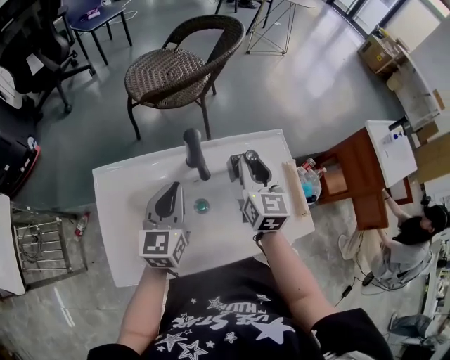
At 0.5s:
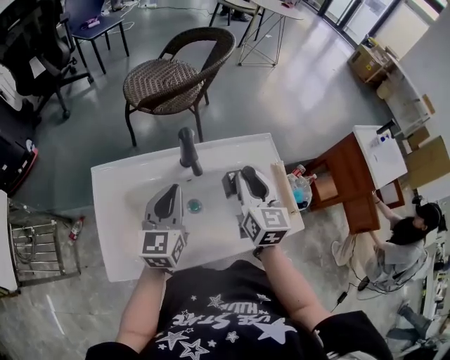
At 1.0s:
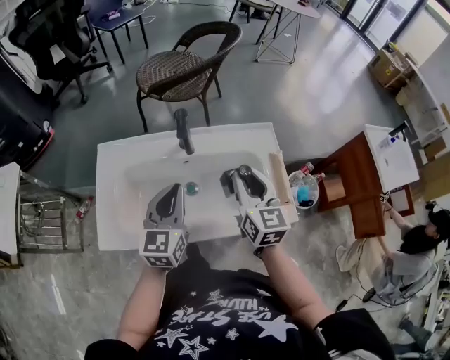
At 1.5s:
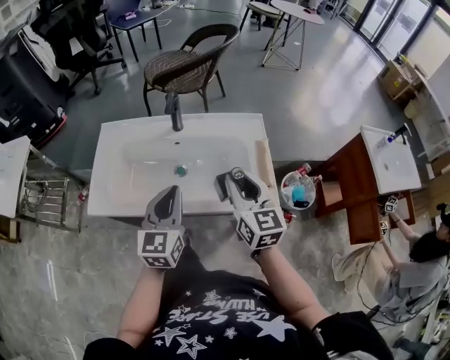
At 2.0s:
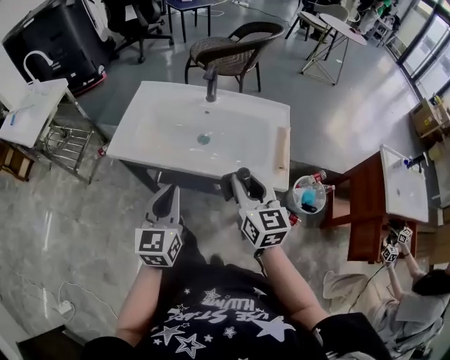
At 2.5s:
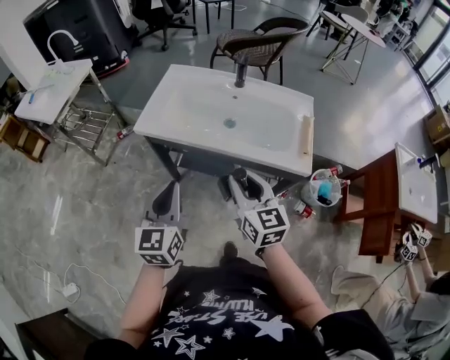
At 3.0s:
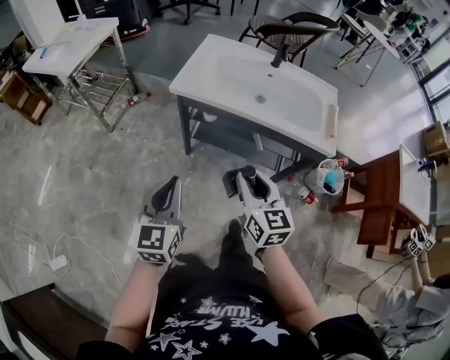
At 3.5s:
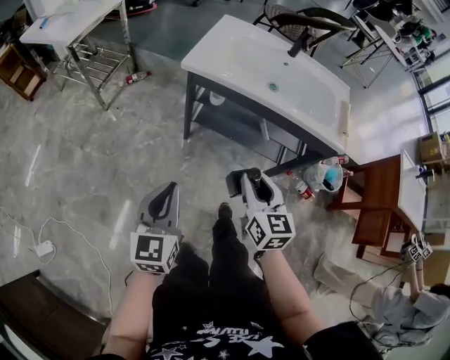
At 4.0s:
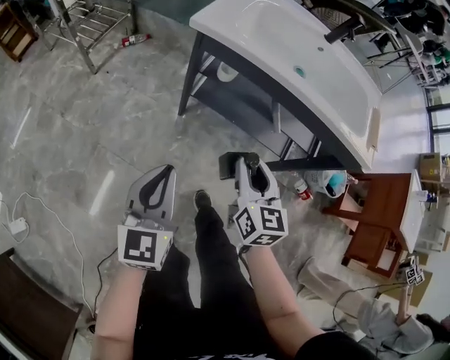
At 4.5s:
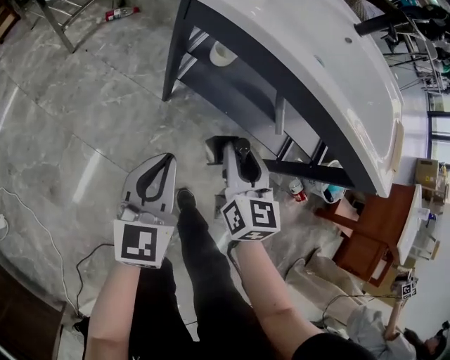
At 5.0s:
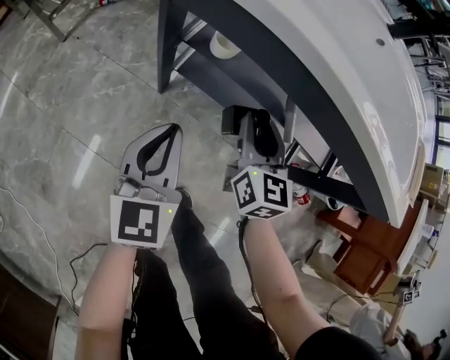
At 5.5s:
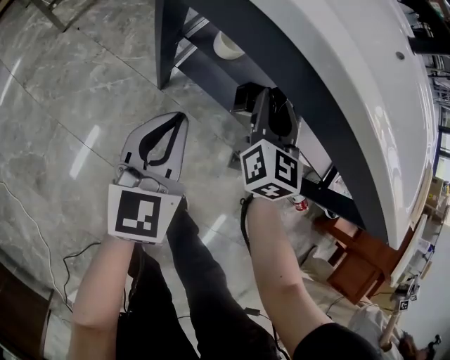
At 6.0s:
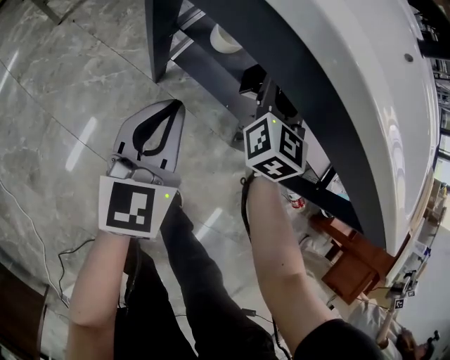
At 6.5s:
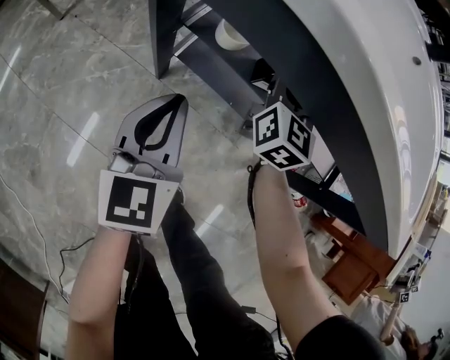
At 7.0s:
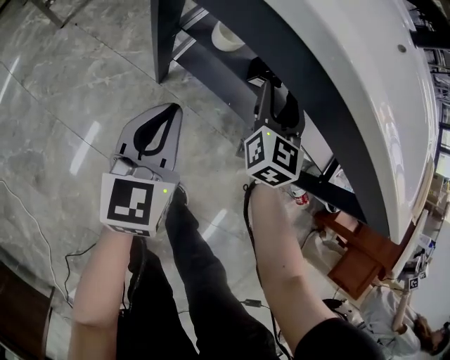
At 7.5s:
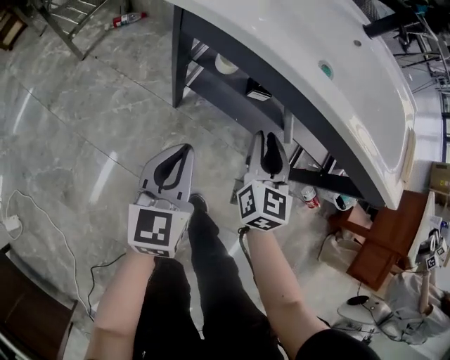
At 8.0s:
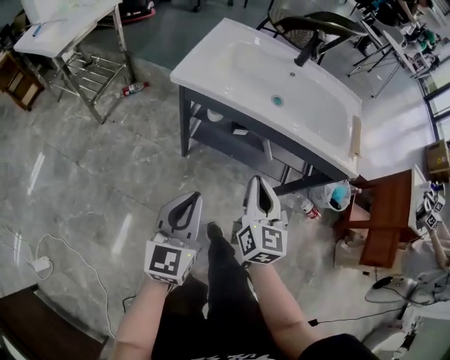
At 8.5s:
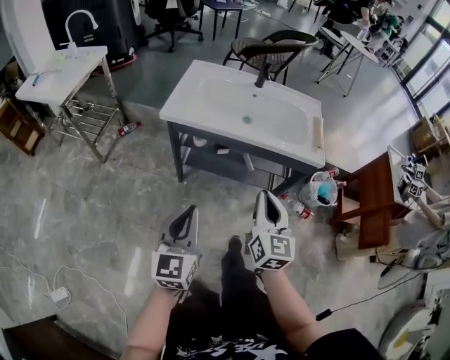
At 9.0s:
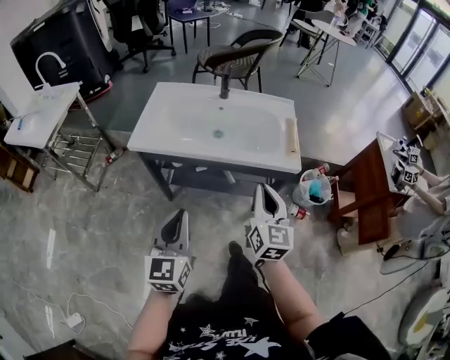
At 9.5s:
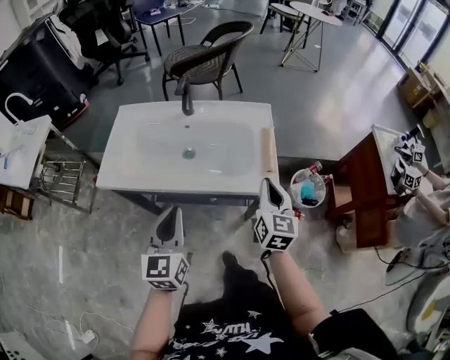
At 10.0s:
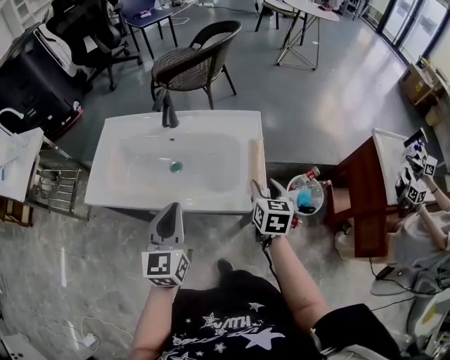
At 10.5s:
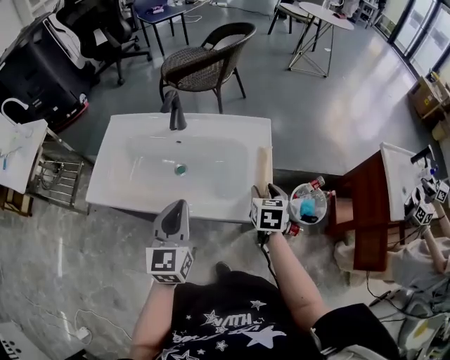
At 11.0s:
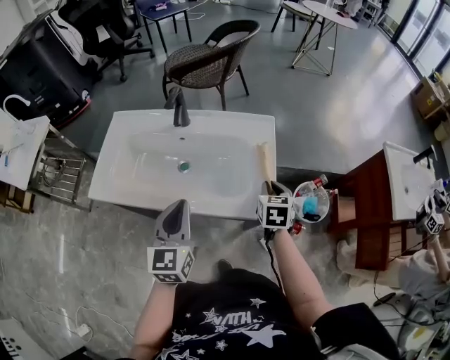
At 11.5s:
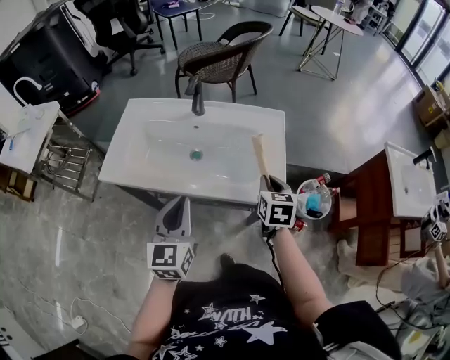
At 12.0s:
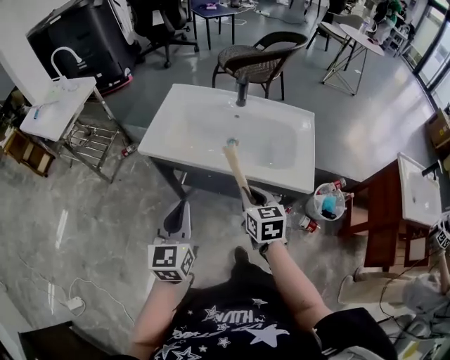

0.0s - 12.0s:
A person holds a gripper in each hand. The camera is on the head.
0.0s - 2.0s: The left gripper changes place by about 35 cm, and rotates roughly 30 degrees; the right gripper ends up roughly 30 cm from where it was, and changes its angle by roughly 30 degrees.
2.0s - 4.0s: The right gripper moves to the left and downward, approximately 30 cm; the left gripper is displaced to the left, downward and backward by approximately 35 cm.
4.0s - 6.0s: Both grippers travel together forward and downward, about 35 cm.
6.0s - 8.0s: The right gripper goes some 40 cm backward and upward. Meanwhile the left gripper shifts approximately 35 cm upward and backward.
8.0s - 10.0s: The right gripper travels to the right and forward by about 40 cm, rotates roughly 20 degrees, and opens its fingers. The left gripper travels forward, to the right and upward by about 35 cm.
10.0s - 12.0s: The grippers both shift to the left and backward by roughly 25 cm. The right gripper rotates about 30 degrees.

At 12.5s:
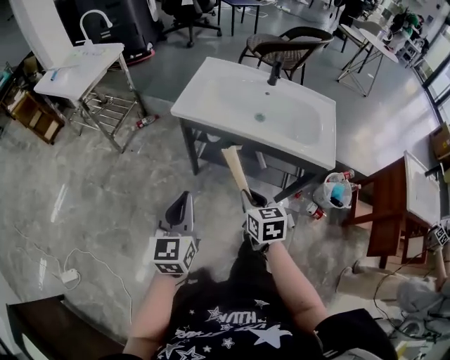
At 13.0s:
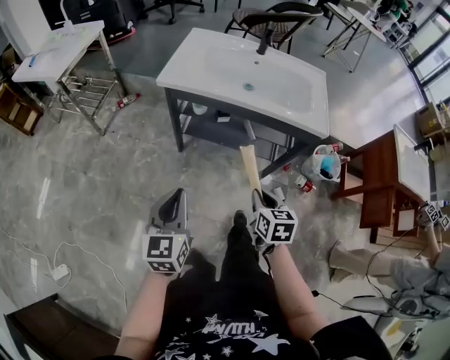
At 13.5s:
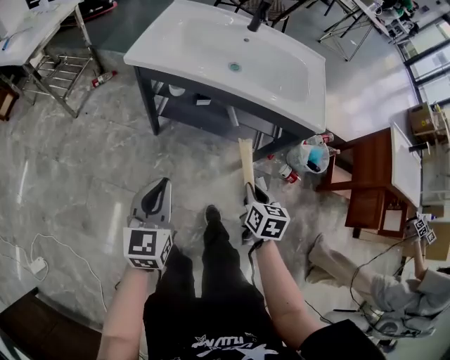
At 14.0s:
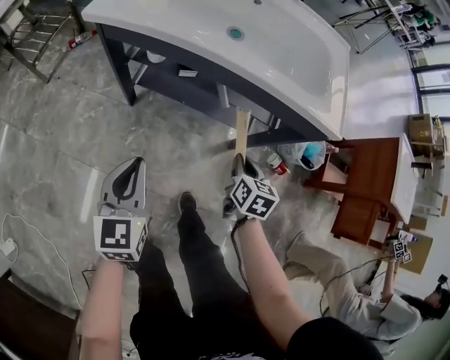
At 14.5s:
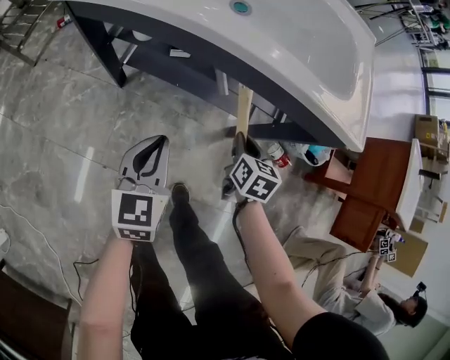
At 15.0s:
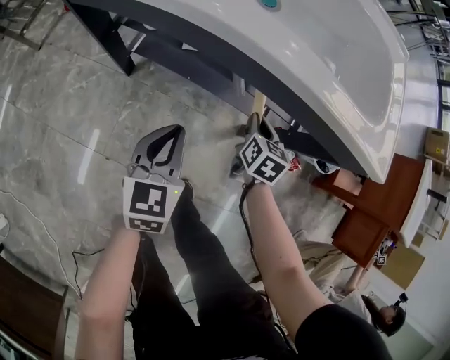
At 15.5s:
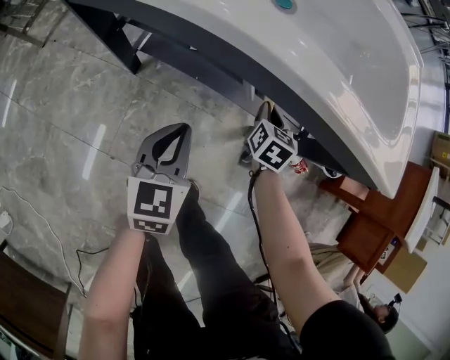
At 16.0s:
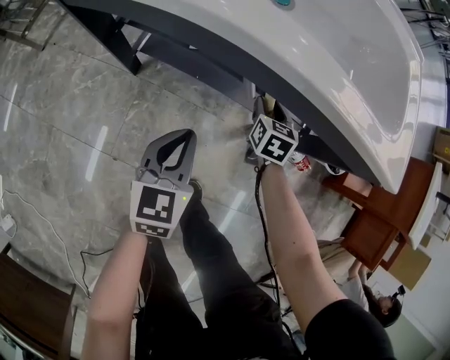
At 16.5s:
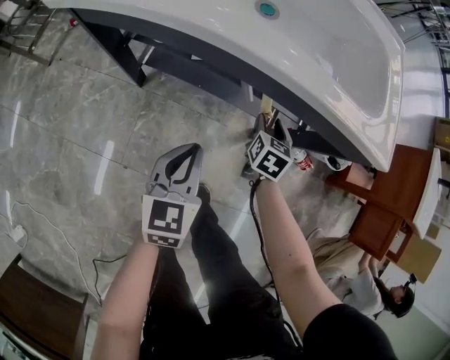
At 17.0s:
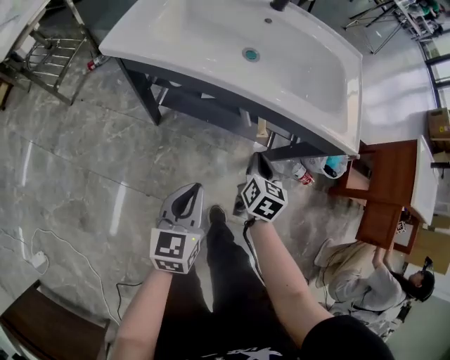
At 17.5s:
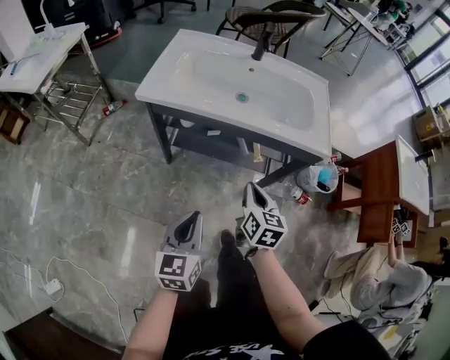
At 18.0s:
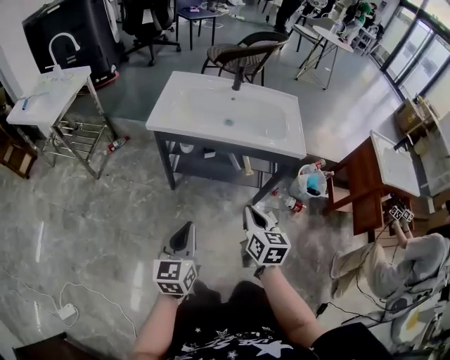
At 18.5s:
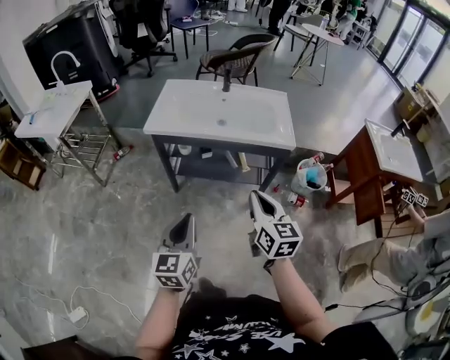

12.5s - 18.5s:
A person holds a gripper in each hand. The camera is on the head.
12.5s - 14.5s: Both grippers move downward, to the right and forward, approximately 35 cm. The right gripper turns by about 30 degrees.
14.5s - 16.5s: The right gripper goes approximately 10 cm forward.
16.5s - 18.5s: Both grippers travel together upward and backward, approximately 50 cm. The right gripper angles its fingers upward, by roughly 30 degrees, and closes.

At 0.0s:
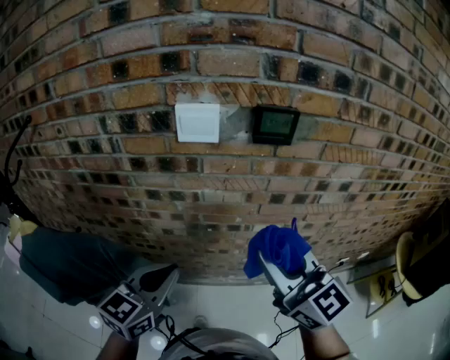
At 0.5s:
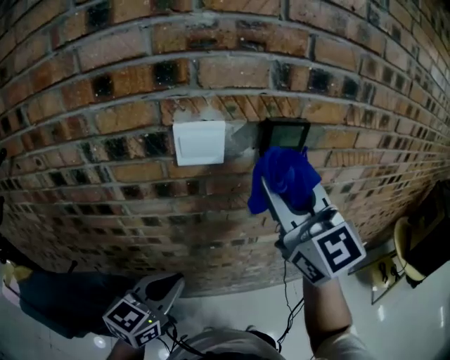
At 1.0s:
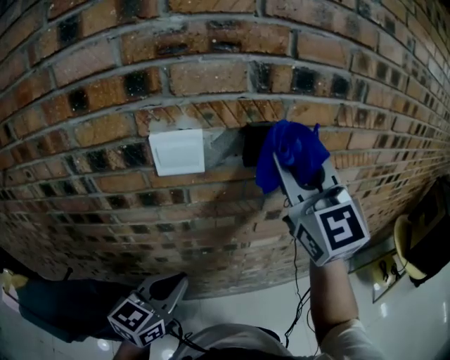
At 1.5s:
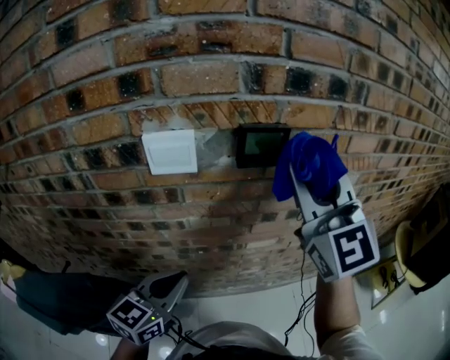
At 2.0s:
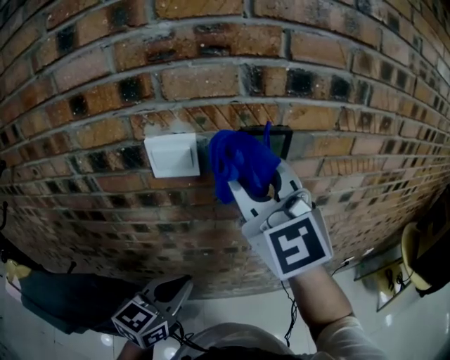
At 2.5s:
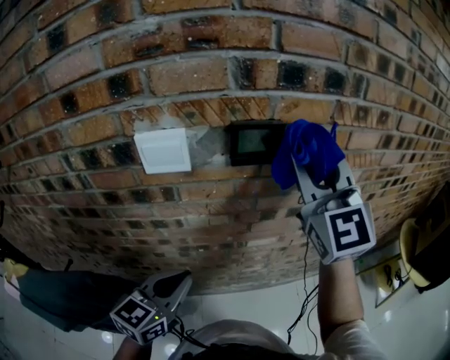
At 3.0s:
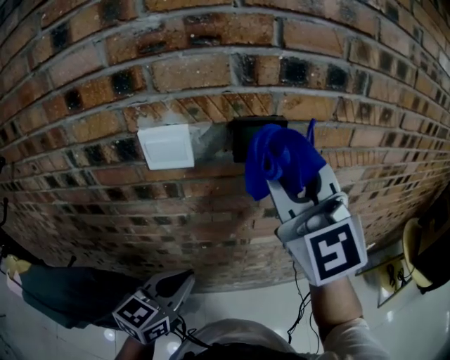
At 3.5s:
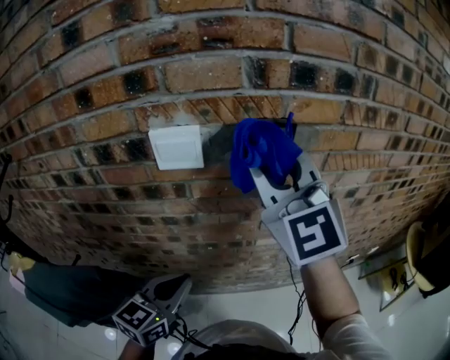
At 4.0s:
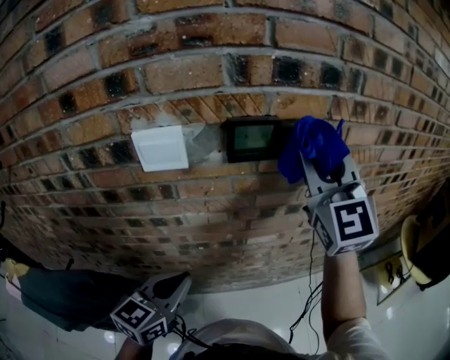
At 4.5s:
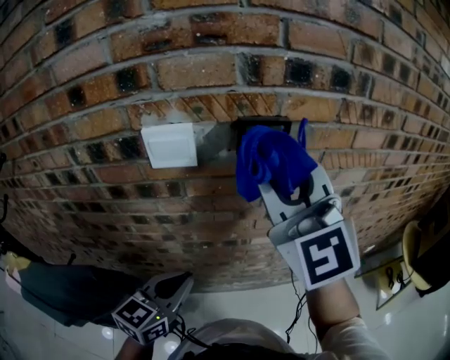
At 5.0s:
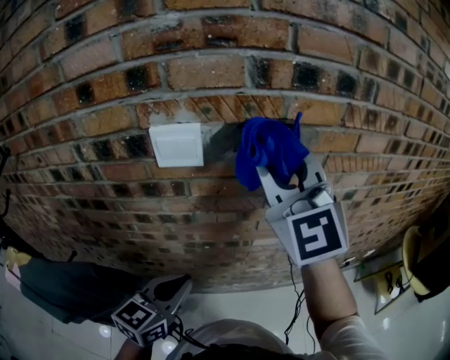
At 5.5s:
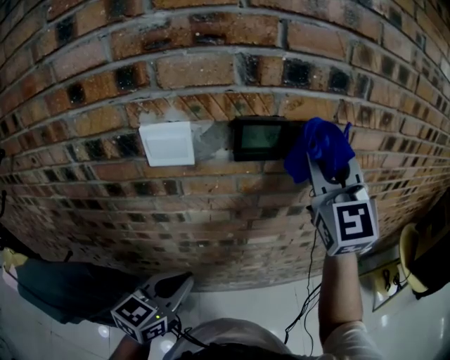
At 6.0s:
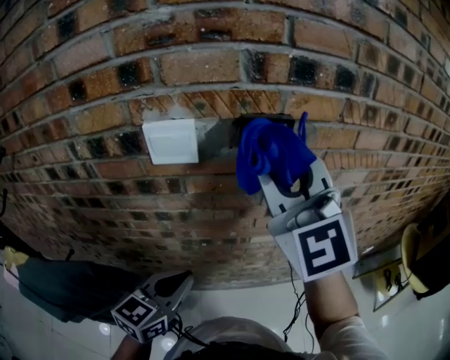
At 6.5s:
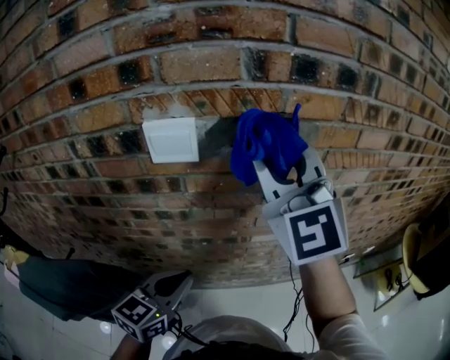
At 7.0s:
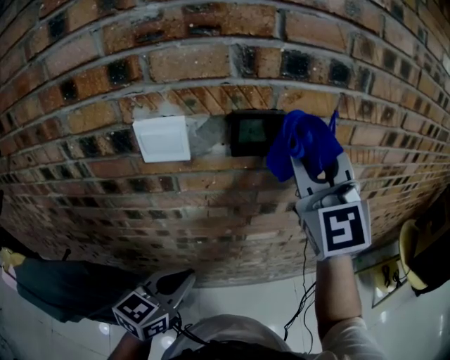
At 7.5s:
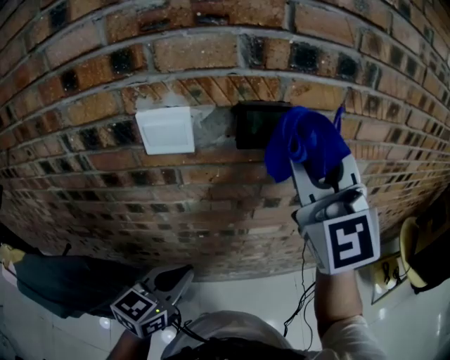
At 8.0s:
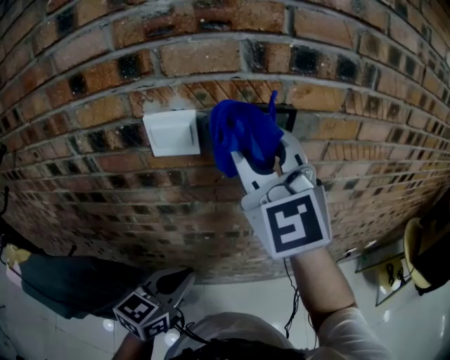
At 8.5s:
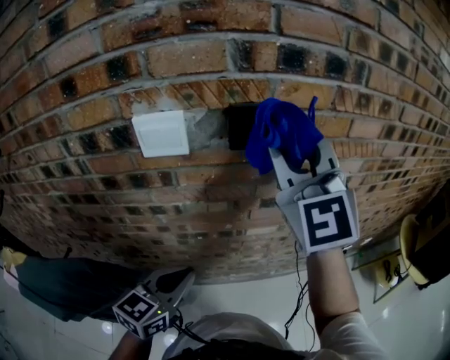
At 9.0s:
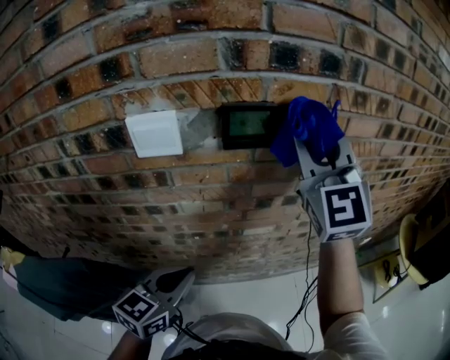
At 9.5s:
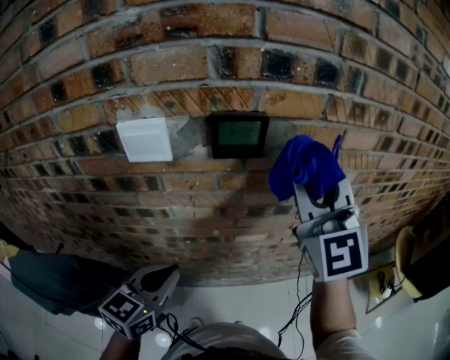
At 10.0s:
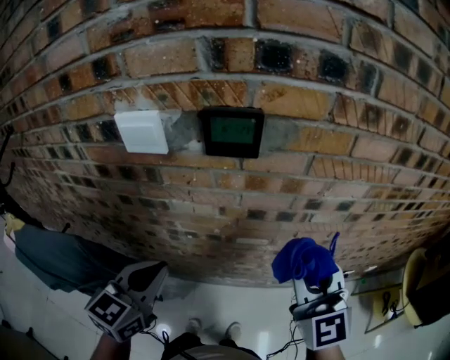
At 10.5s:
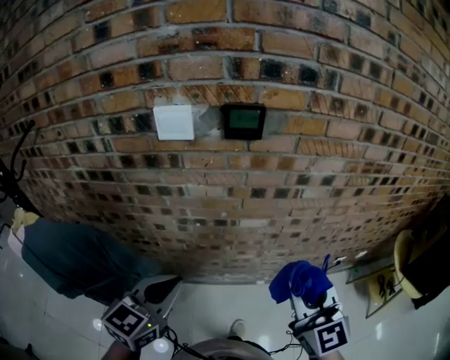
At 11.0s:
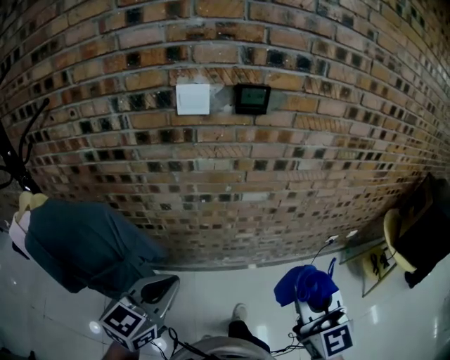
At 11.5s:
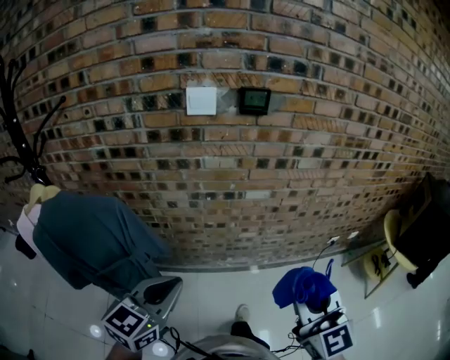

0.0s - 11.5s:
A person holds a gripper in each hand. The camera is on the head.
0.0s - 2.0s: The right gripper heads forward and upward, covering roughly 20 cm, and changes its angle by approximately 30 degrees. The left gripper goes roughly 5 cm forward.
2.0s - 4.0s: The right gripper swings left and right, about 15 cm each way, with 2 reversals.
4.0s - 6.0s: The right gripper goes left and right, approximately 10 cm each way, reversing 2 times.
6.0s - 7.5s: The right gripper goes approximately 5 cm to the right.
7.5s - 9.5s: The right gripper moves to the right, about 5 cm.
9.5s - 11.5s: The grippers both shift backward by some 35 cm. The right gripper swivels roughly 20 degrees.
